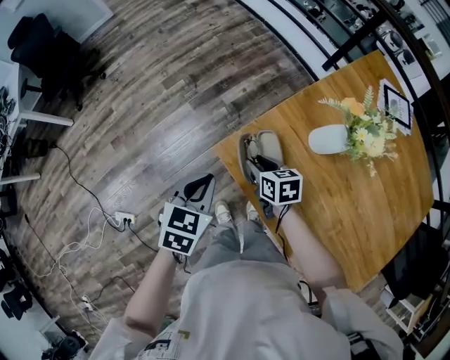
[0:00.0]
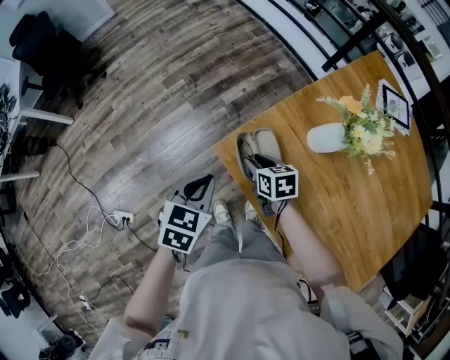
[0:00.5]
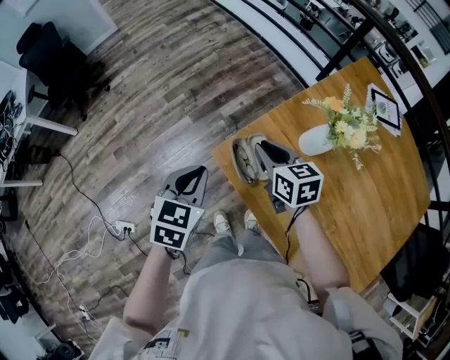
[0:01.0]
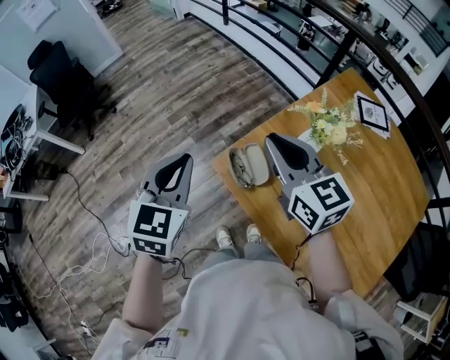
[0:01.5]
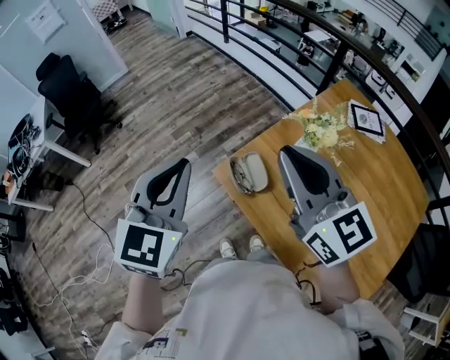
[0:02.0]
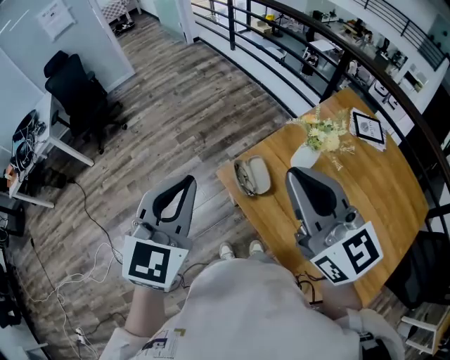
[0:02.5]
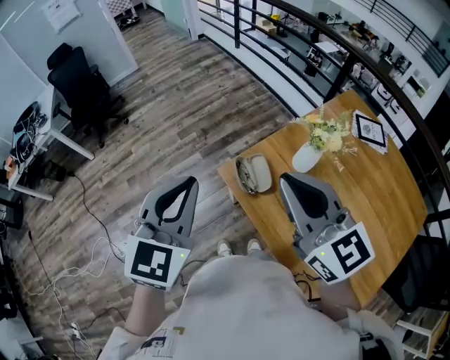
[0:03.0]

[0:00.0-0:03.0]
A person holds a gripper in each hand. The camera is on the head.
0:00.0 to 0:01.5: The right gripper moves upward, about 35 cm, points its fingers roughly 30 degrees further upward, and closes its fingers. The left gripper heads upward, covering approximately 20 cm, and swivels roughly 30 degrees.
0:01.5 to 0:03.0: The grippers both shift backward and upward by some 15 cm.

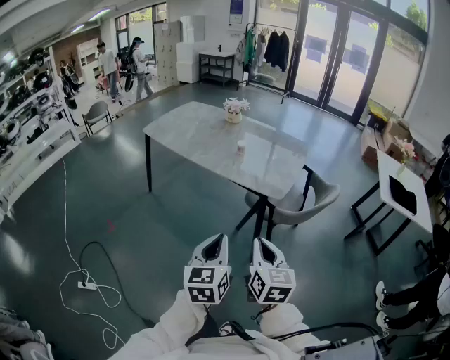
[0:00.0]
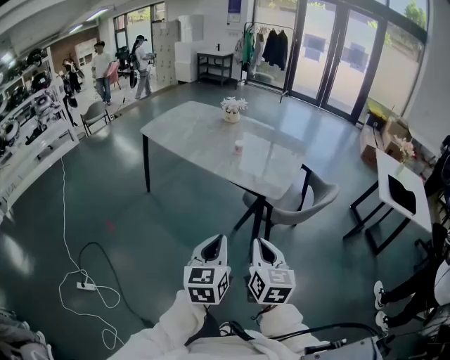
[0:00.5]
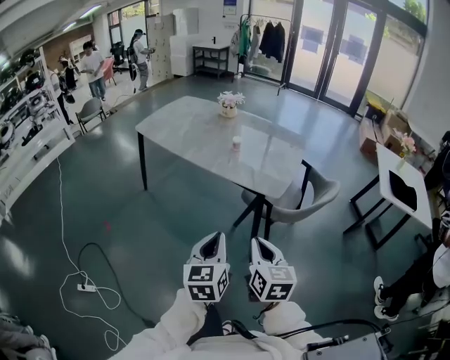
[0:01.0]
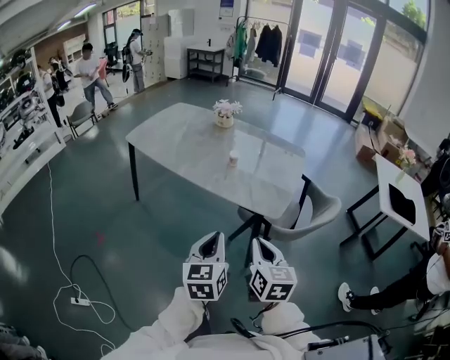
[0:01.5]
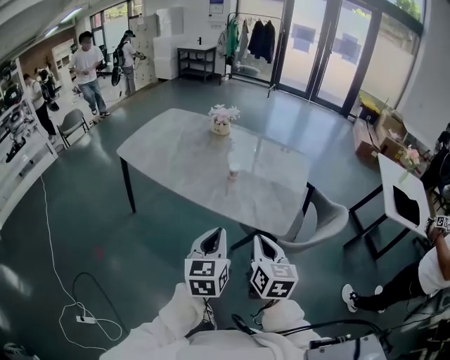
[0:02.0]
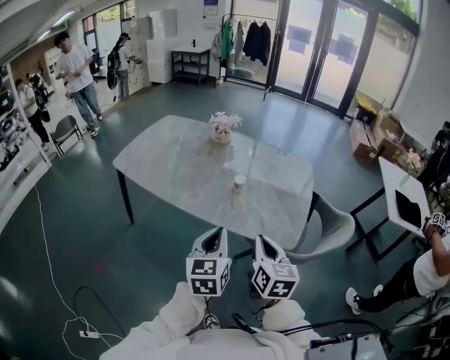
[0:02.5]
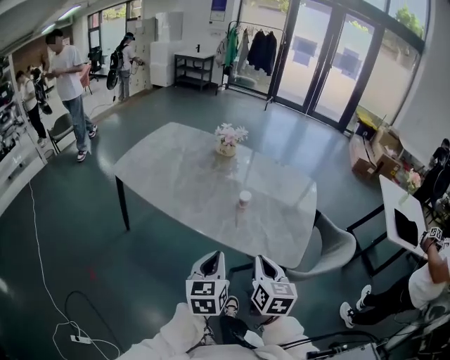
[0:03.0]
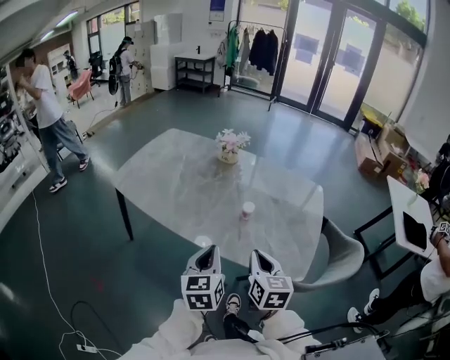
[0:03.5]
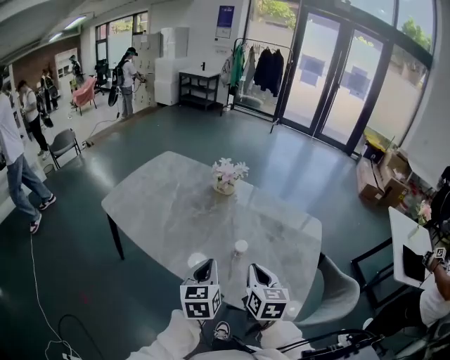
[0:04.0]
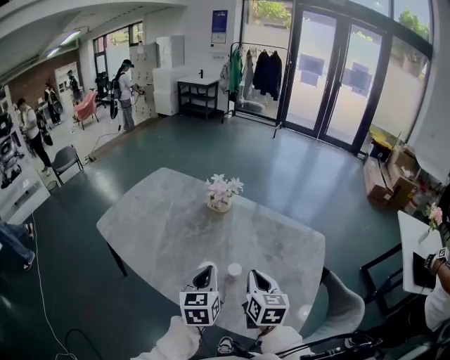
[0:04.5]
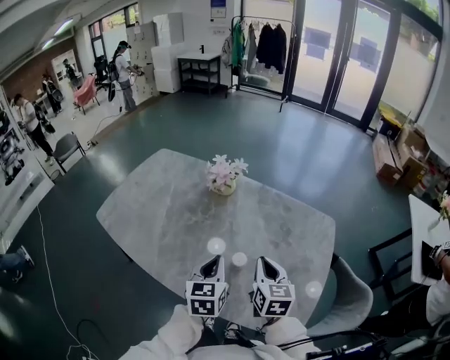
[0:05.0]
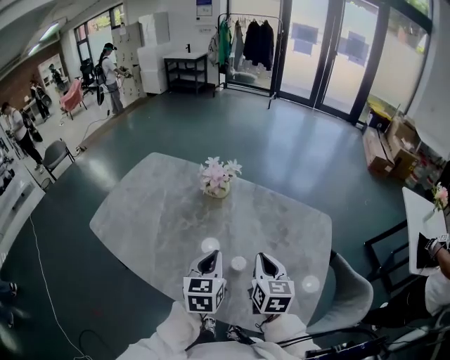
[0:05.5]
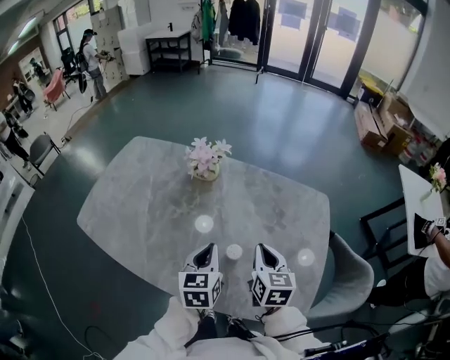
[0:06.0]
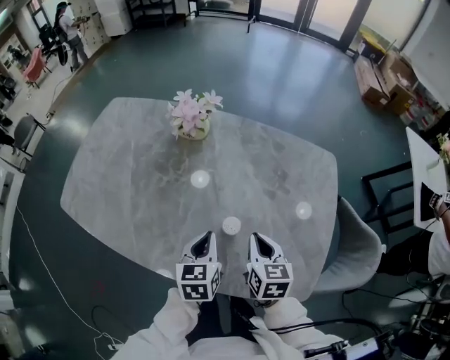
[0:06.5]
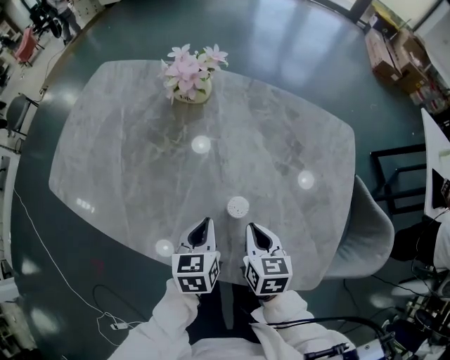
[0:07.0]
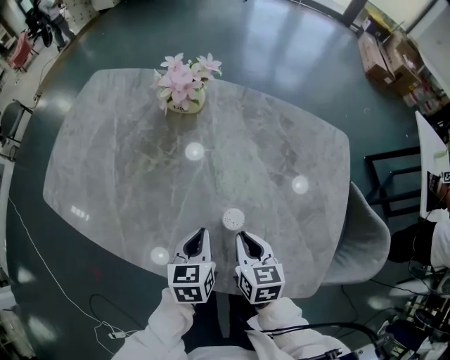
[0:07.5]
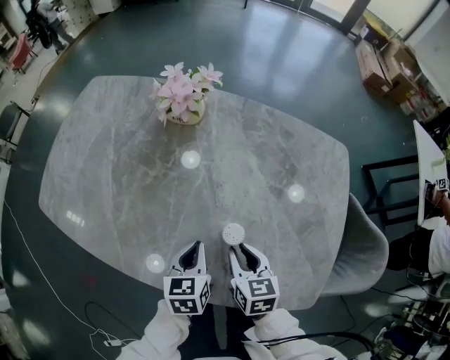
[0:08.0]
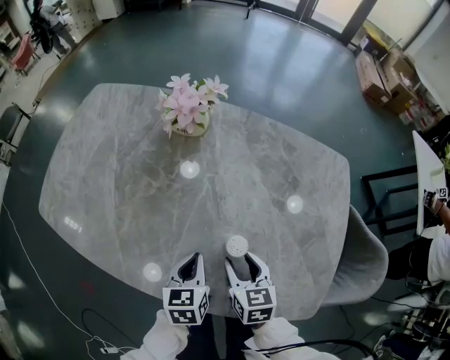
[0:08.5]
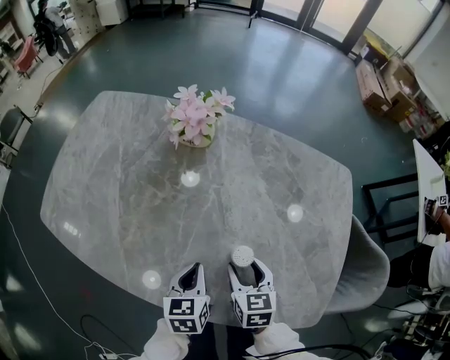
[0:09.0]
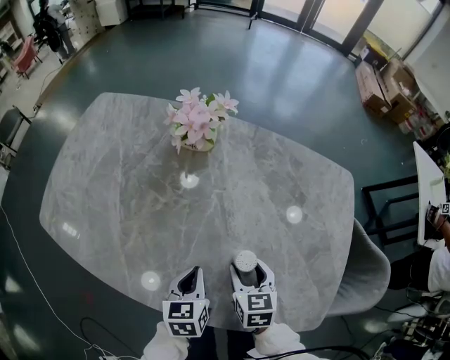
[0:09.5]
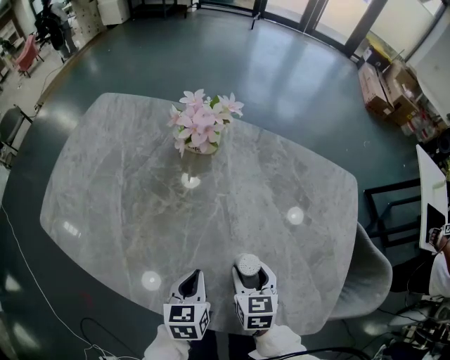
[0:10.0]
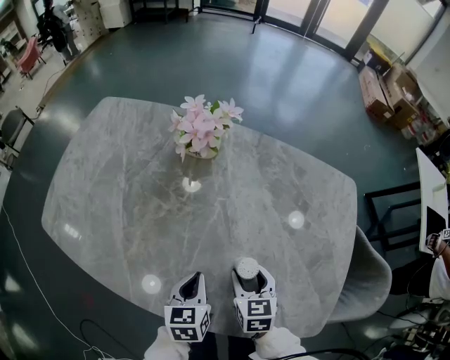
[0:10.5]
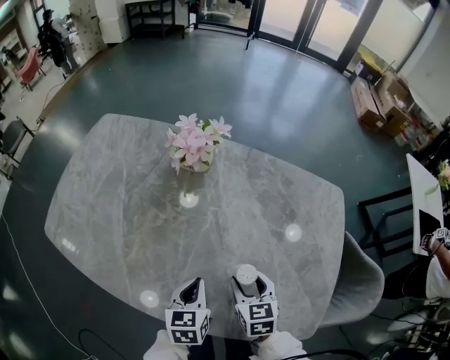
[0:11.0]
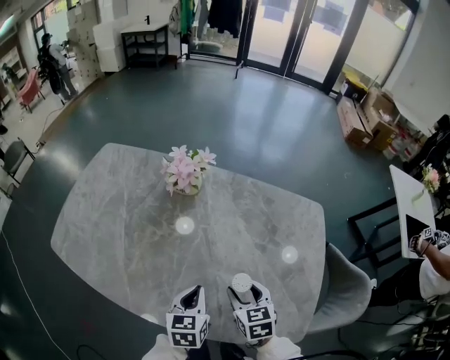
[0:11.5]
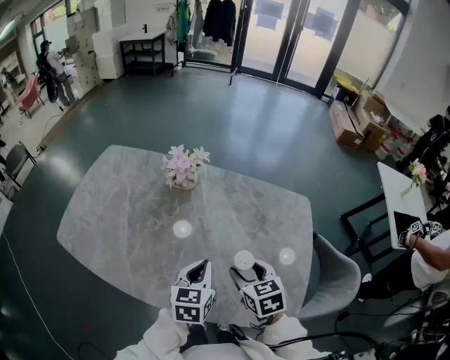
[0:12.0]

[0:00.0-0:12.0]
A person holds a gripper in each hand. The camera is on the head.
0:00.0 to 0:02.0: Both grippers move forward, approximately 25 cm.
0:02.0 to 0:04.0: The two grippers go about 30 cm forward.
0:04.0 to 0:06.0: The grippers both shift forward by approximately 15 cm.
0:06.0 to 0:08.0: Both grippers move downward, approximately 15 cm.
0:08.0 to 0:10.0: The right gripper opens up.
0:10.0 to 0:12.0: The left gripper travels upward and to the right by some 20 cm. The right gripper moves upward, approximately 15 cm.

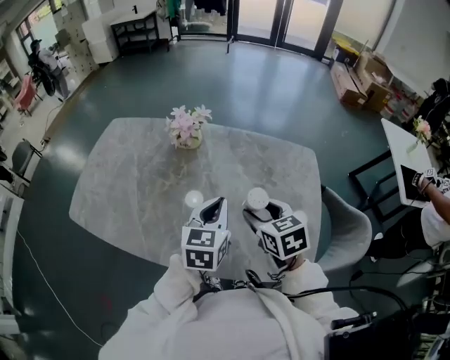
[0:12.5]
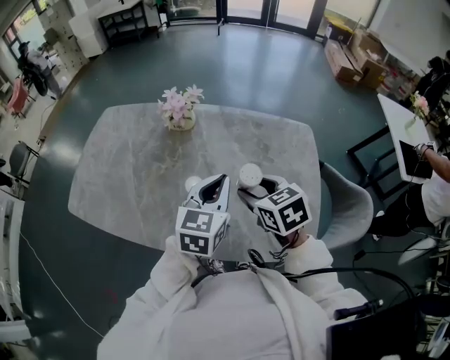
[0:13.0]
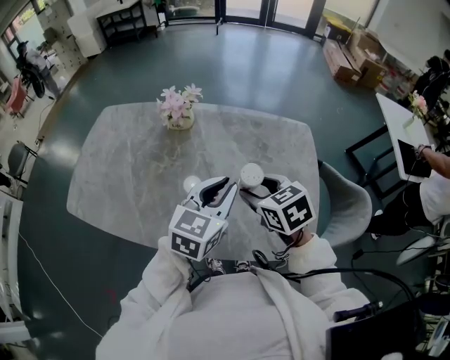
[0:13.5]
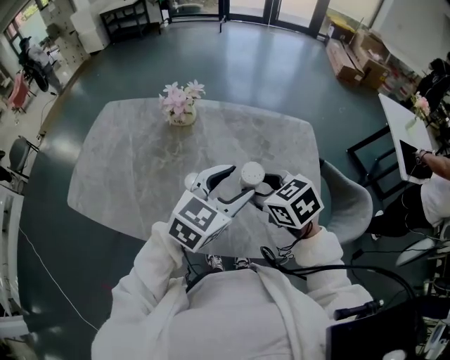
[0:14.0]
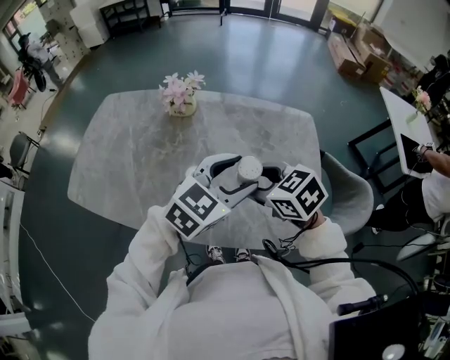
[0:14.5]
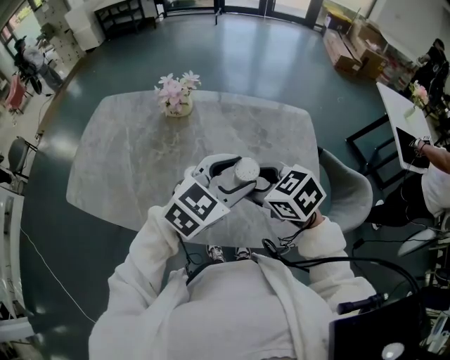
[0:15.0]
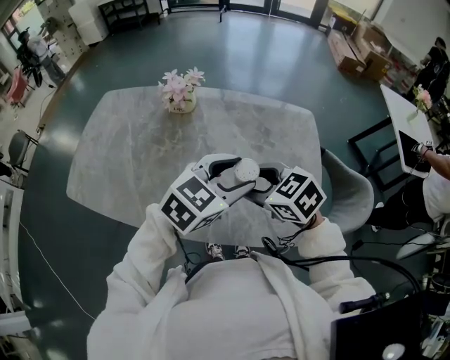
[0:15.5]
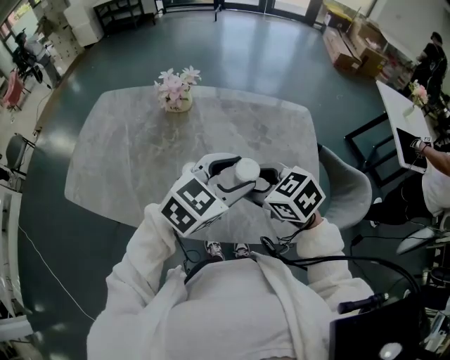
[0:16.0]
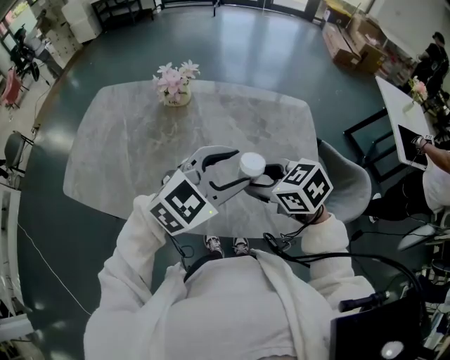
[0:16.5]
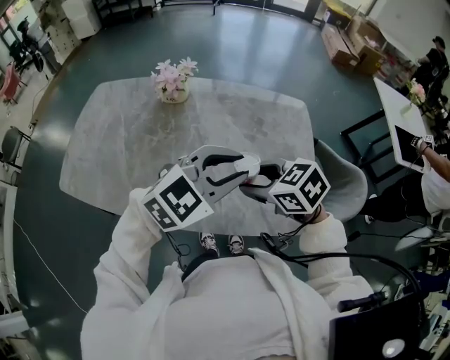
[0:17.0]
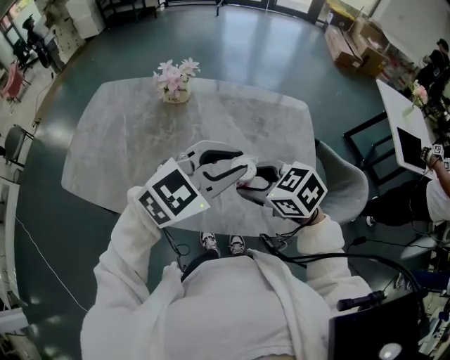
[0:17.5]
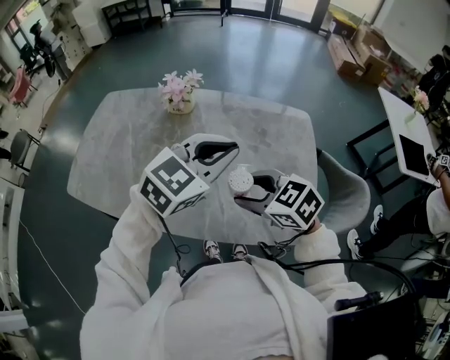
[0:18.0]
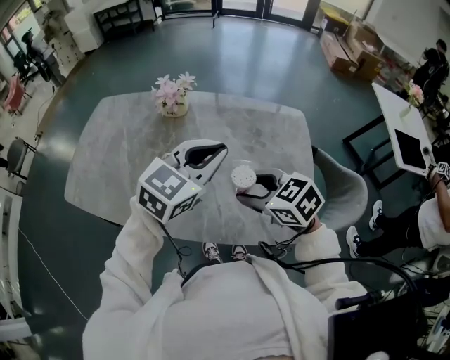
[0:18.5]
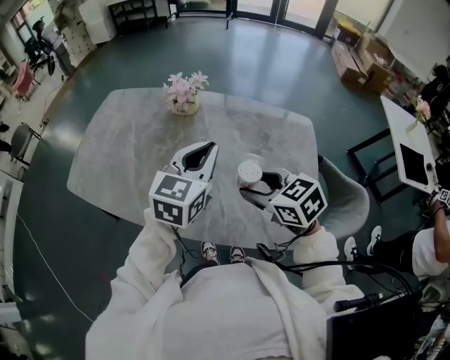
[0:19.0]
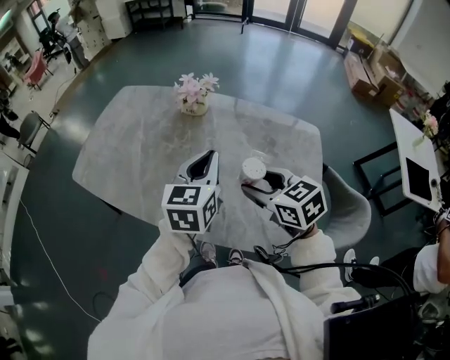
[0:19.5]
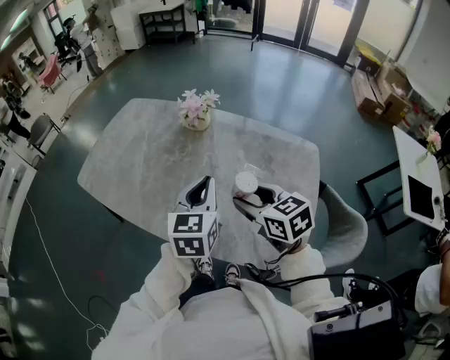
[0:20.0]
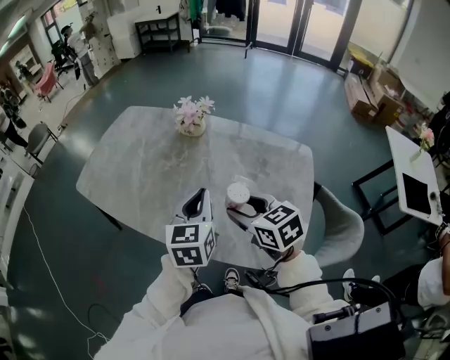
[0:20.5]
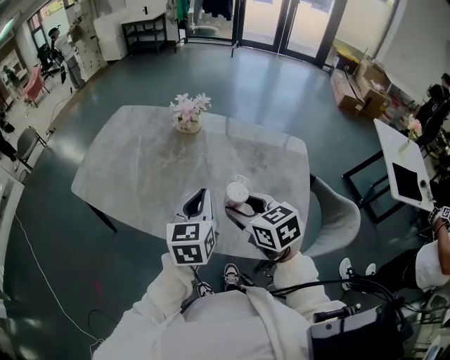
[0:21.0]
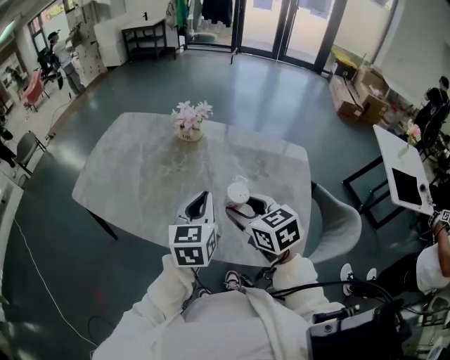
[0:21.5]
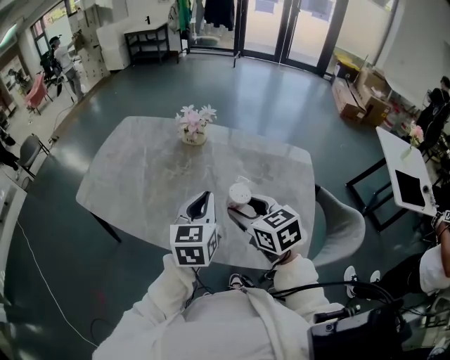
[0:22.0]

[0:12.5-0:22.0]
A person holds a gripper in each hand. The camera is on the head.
0:12.5 to 0:14.5: The right gripper travels backward by some 5 cm, and turns by about 20 degrees. Meanwhile the left gripper shifts approximately 10 cm to the right, backward and upward, swivels approximately 40 degrees, and opens up.
0:14.5 to 0:16.5: The grippers move only a little.
0:16.5 to 0:18.0: The left gripper shifts by roughly 5 cm, and closes.
0:18.0 to 0:20.0: The left gripper shifts roughly 10 cm to the left and downward, and changes its angle by some 60 degrees.
0:20.0 to 0:22.0: The right gripper is displaced to the left by roughly 5 cm.

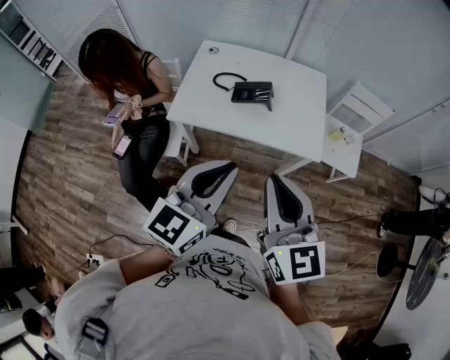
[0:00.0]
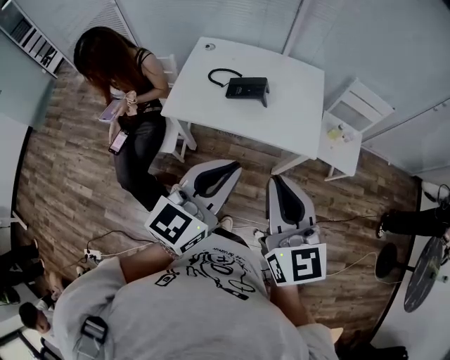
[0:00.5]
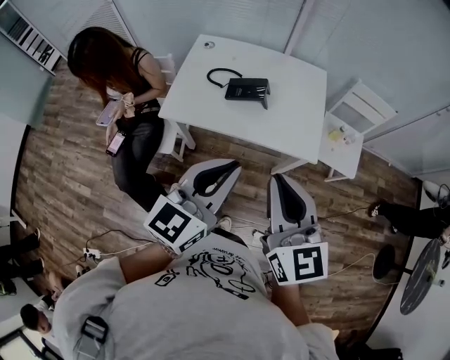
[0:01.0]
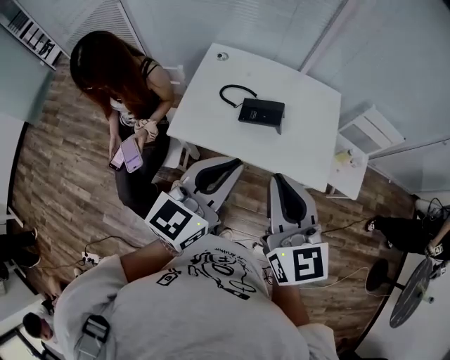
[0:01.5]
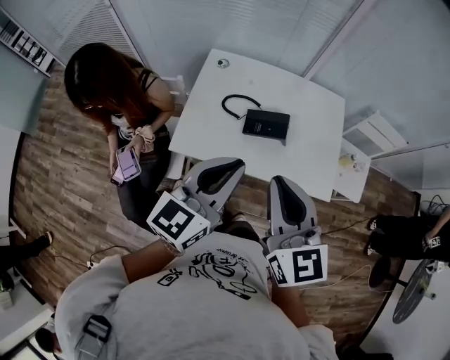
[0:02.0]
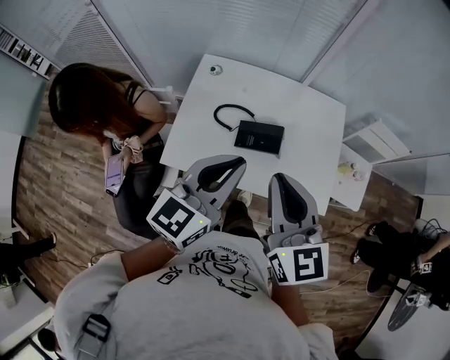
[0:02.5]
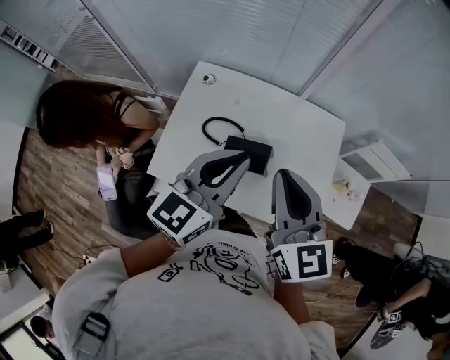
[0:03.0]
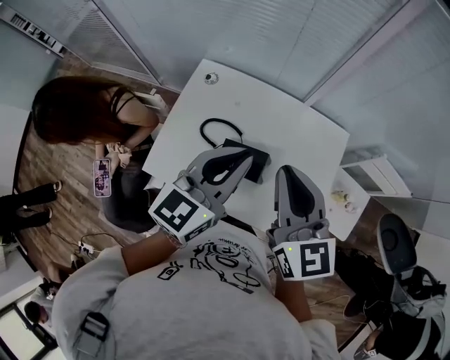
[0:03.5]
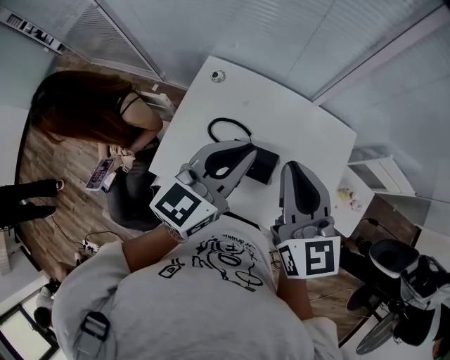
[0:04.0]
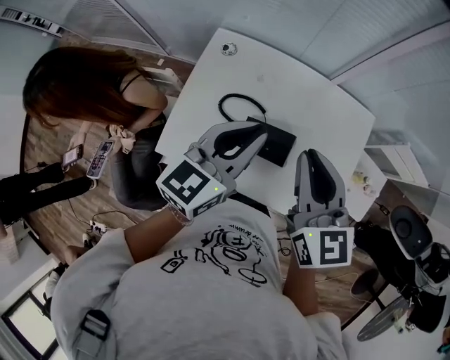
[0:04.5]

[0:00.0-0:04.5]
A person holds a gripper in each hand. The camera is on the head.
0:00.0 to 0:02.0: The grippers both shift forward and to the left by about 25 cm.
0:02.0 to 0:04.5: Both grippers move forward, roughly 25 cm.
